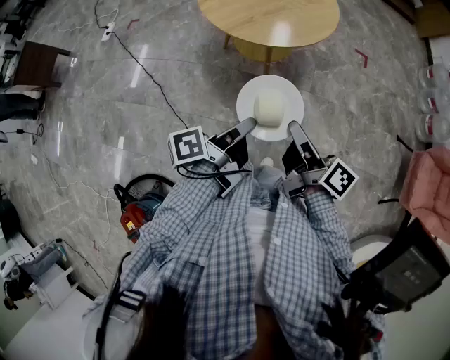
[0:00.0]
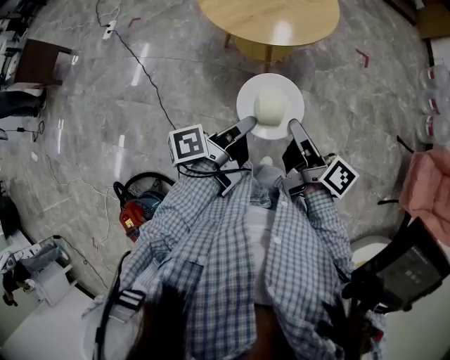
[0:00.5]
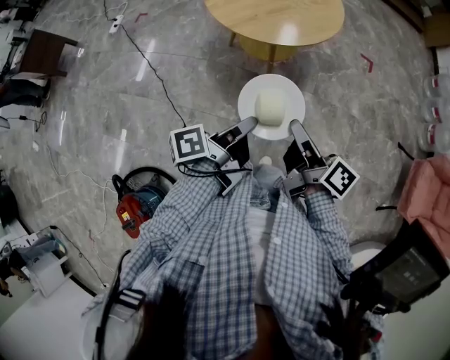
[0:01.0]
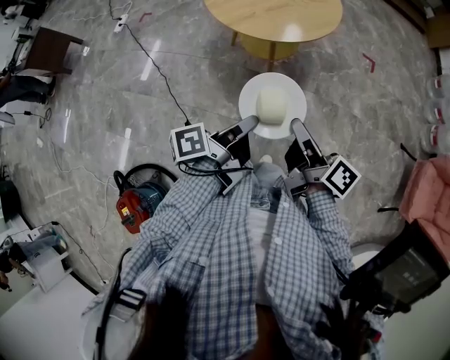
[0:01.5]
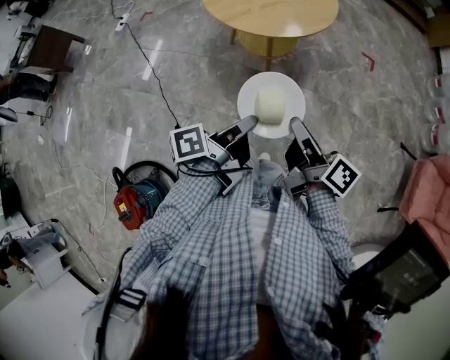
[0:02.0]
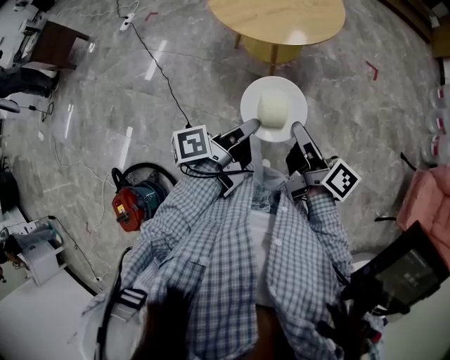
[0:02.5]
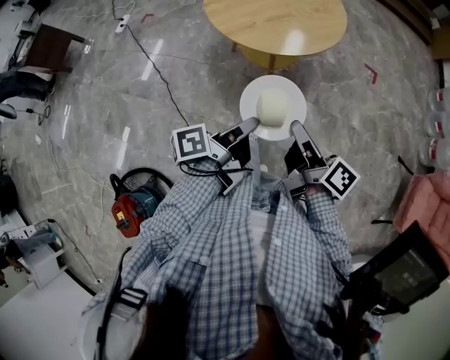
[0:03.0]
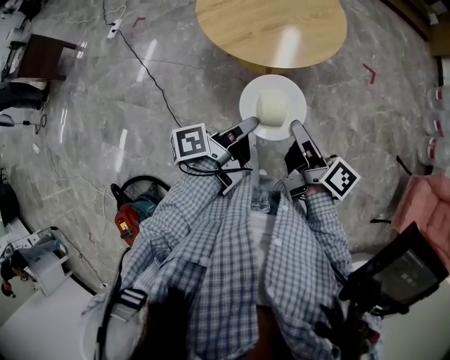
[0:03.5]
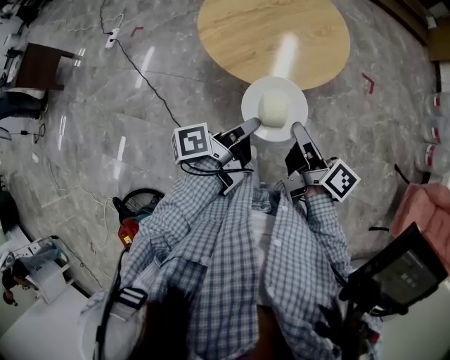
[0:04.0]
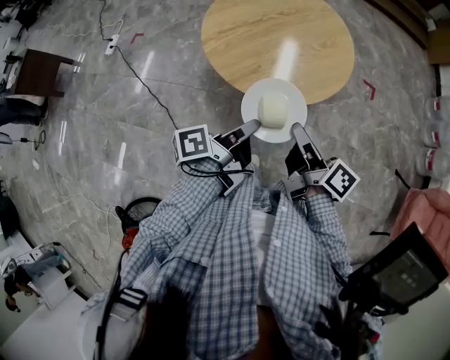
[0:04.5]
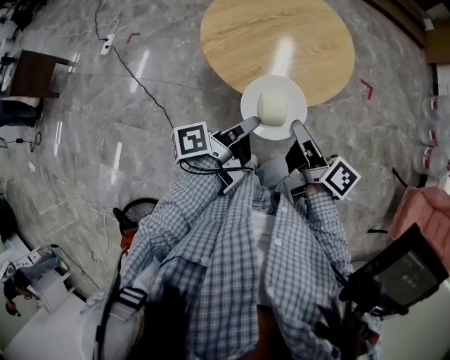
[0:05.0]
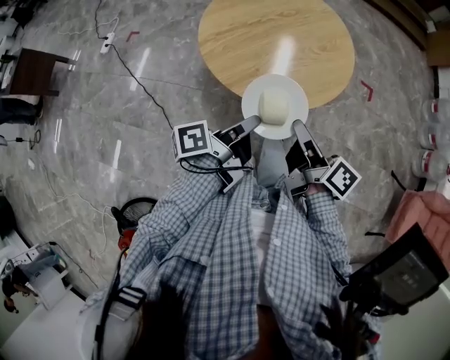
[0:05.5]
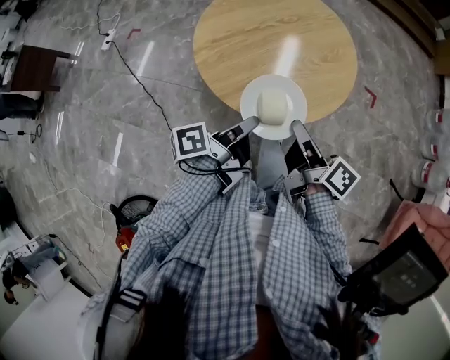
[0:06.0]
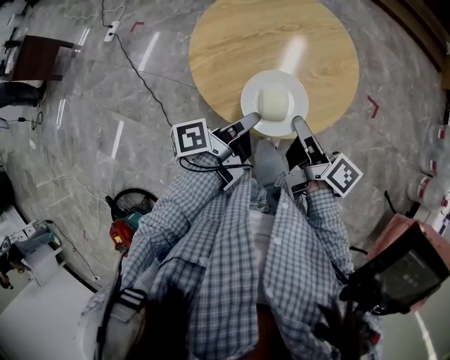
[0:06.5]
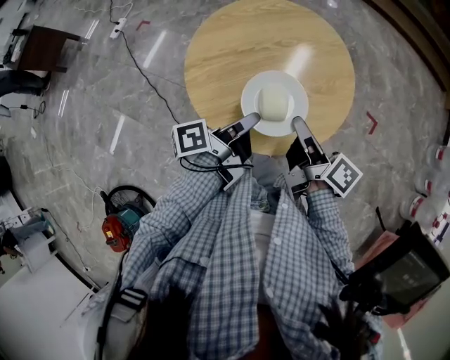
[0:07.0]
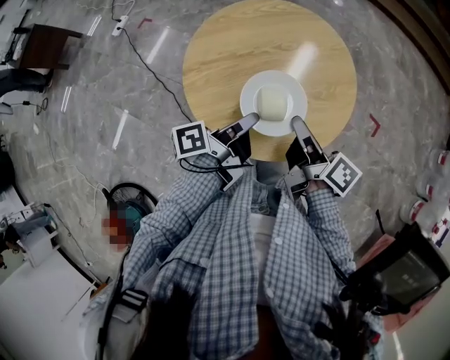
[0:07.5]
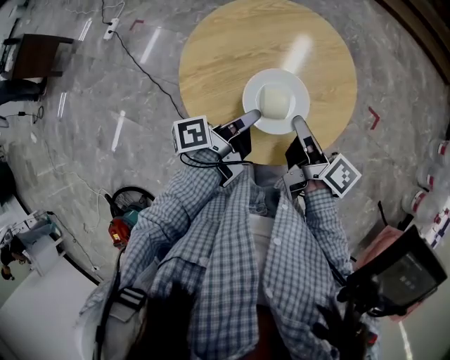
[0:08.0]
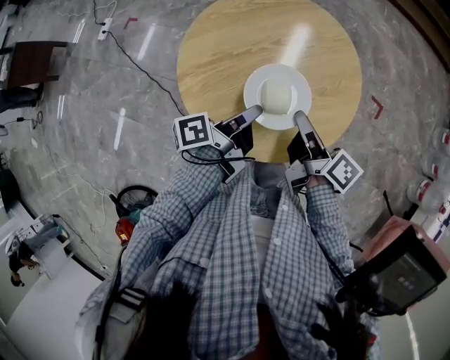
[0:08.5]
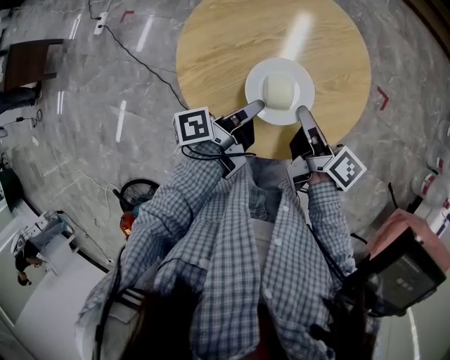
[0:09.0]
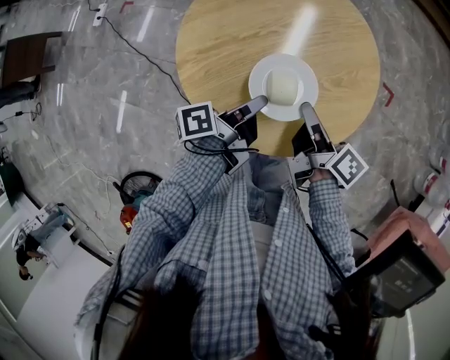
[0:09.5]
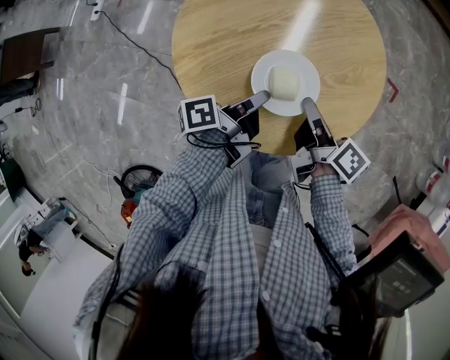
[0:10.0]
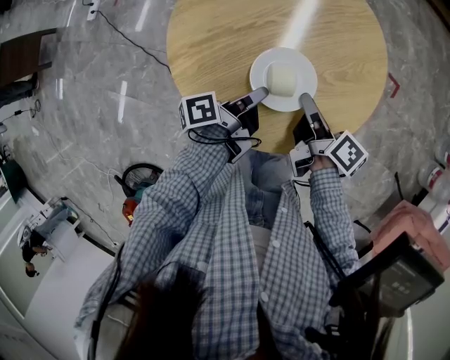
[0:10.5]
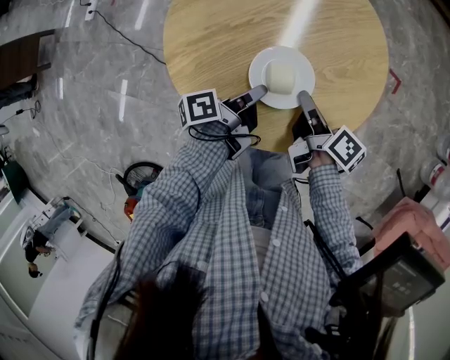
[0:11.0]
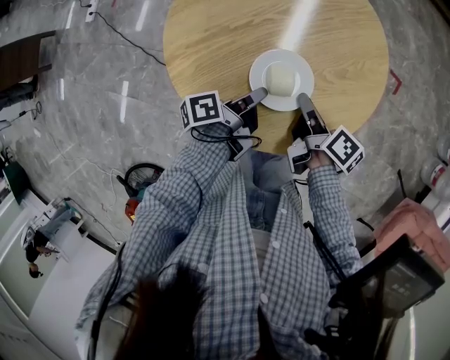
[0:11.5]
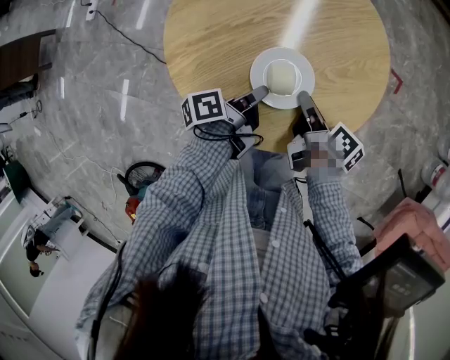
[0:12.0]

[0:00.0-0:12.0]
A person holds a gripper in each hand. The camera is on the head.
0:02.0 to 0:04.0: The right gripper changes place by approximately 15 cm.
0:04.0 to 0:06.0: The right gripper ends up roughly 15 cm from where it was.
0:06.0 to 0:08.0: The right gripper ends up some 20 cm from where it was.
0:08.0 to 0:10.0: The right gripper travels downward by about 10 cm.
0:10.0 to 0:12.0: The right gripper shifts some 5 cm downward.

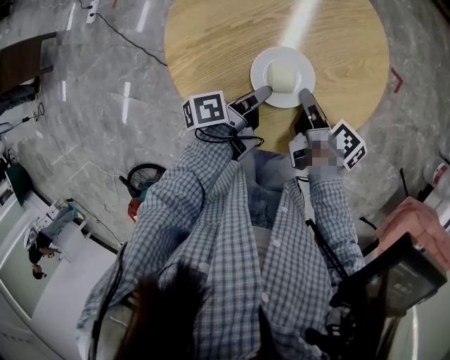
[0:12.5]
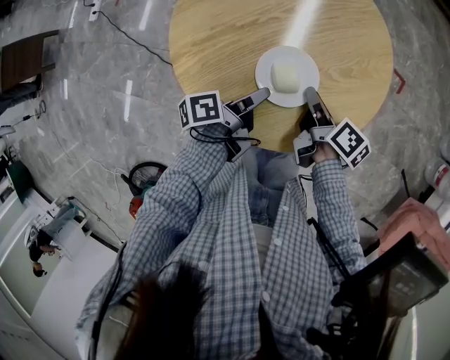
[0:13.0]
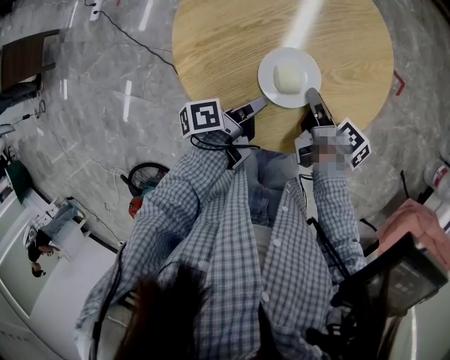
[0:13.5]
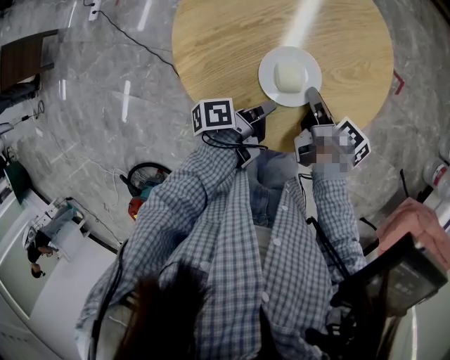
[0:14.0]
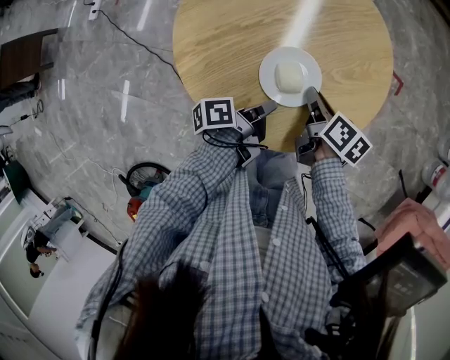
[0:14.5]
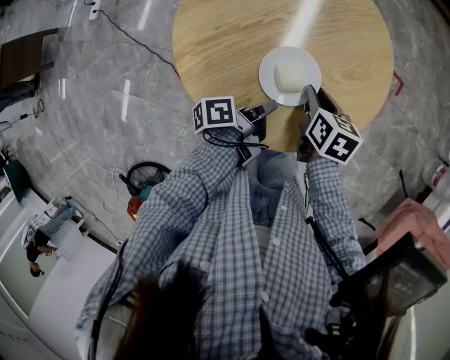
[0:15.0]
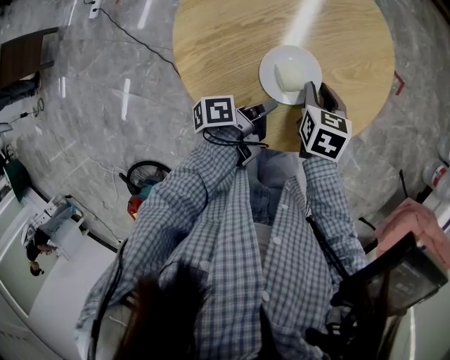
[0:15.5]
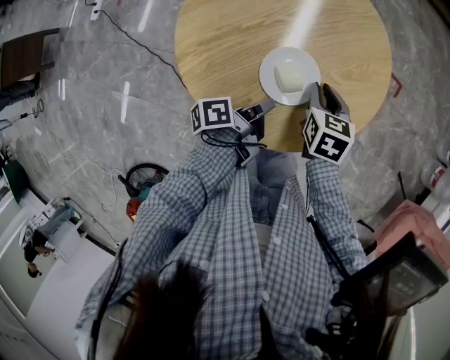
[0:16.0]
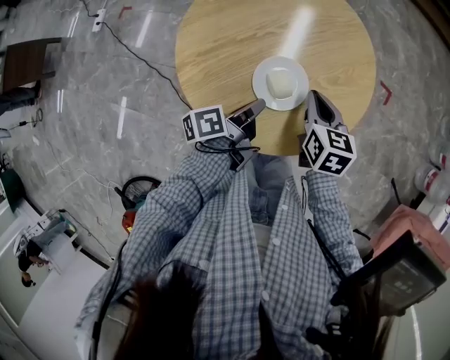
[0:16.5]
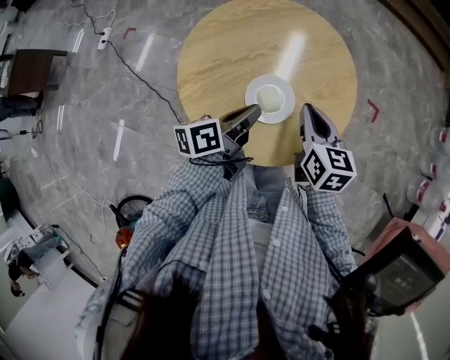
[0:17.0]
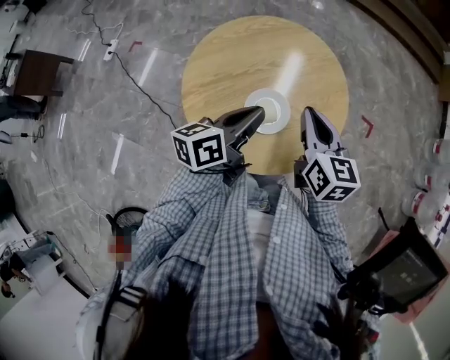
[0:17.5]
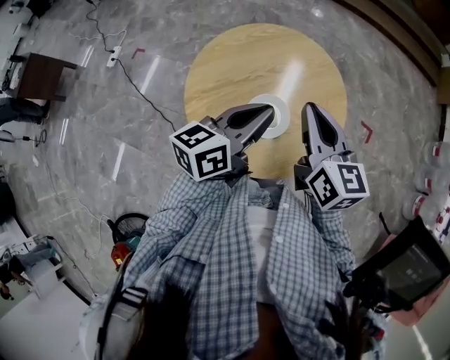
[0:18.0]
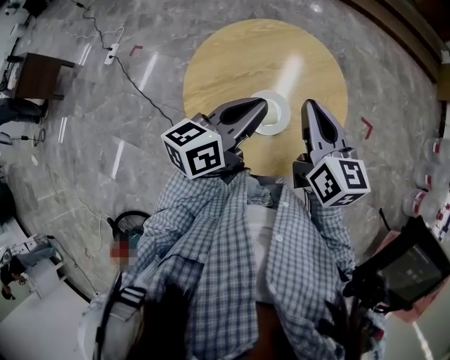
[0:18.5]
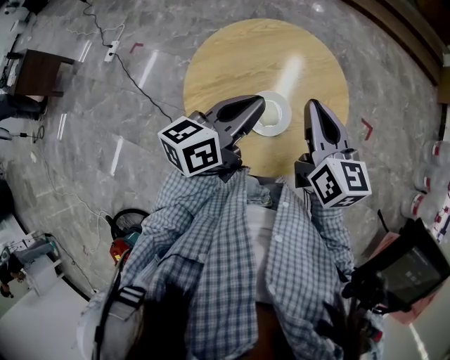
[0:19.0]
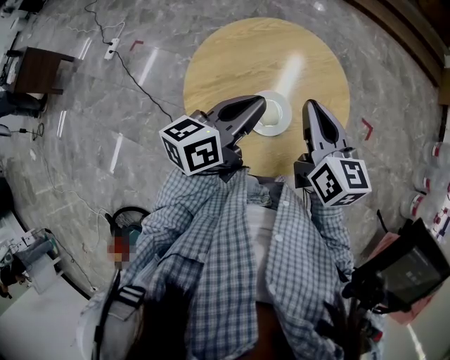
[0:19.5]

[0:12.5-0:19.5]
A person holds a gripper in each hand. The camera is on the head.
0:14.5 to 0:16.0: The right gripper swivels about 40 degrees.
0:16.0 to 0:17.5: The right gripper goes roughly 20 cm upward, and angles its fingers upward, by approximately 30 degrees.
0:17.5 to 0:19.5: The right gripper shifts by some 5 cm.

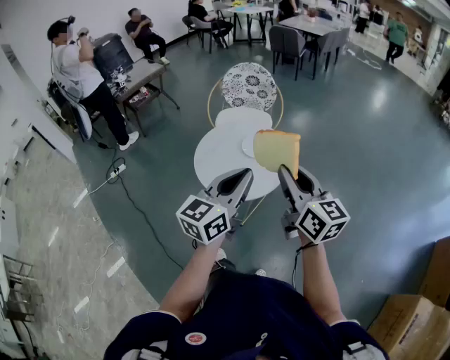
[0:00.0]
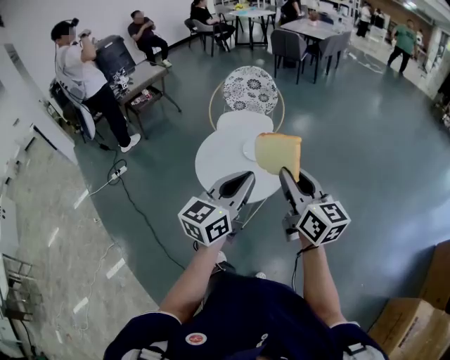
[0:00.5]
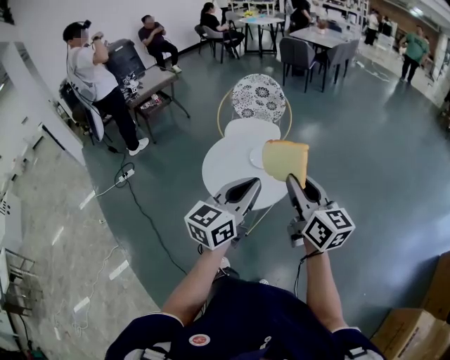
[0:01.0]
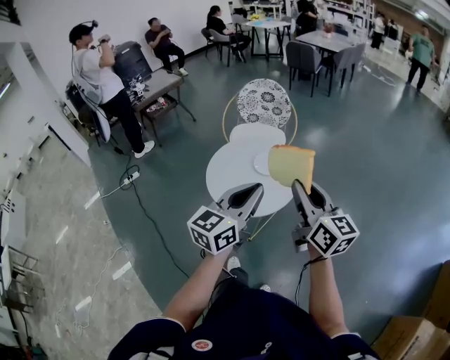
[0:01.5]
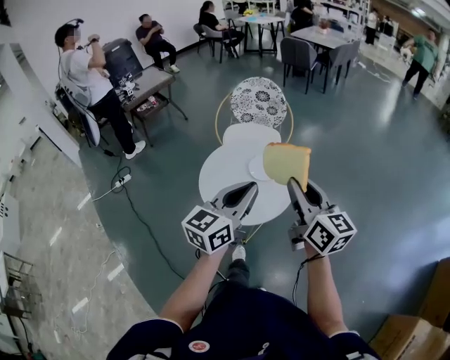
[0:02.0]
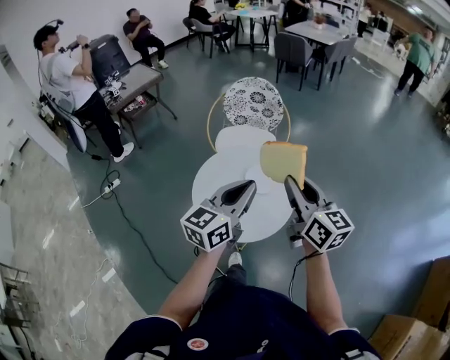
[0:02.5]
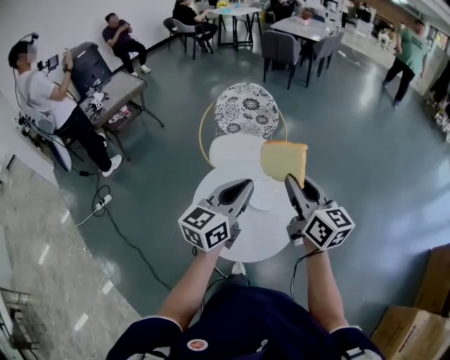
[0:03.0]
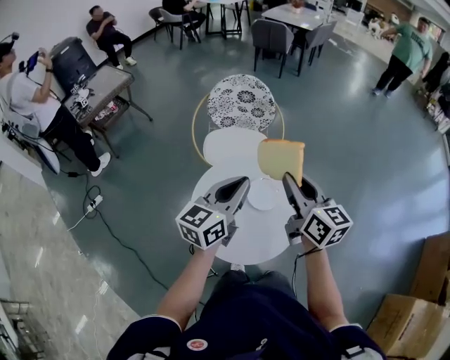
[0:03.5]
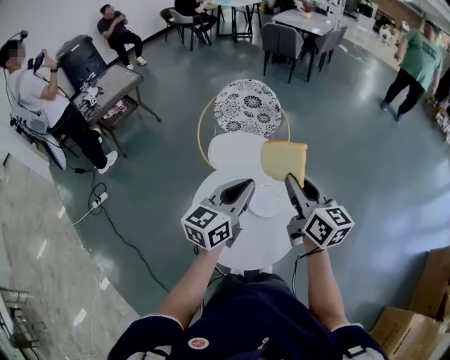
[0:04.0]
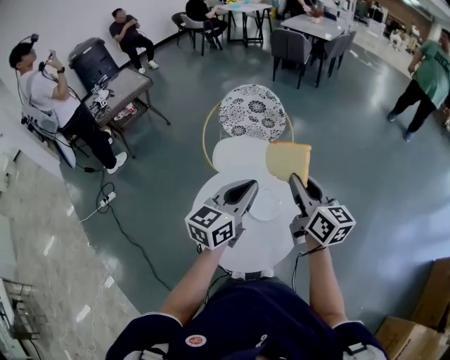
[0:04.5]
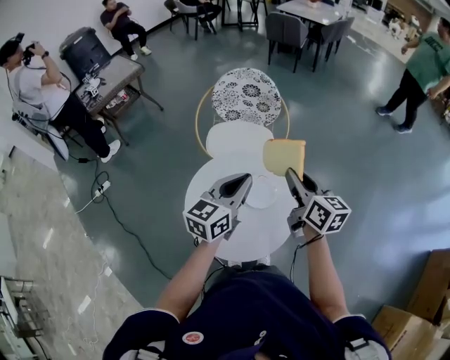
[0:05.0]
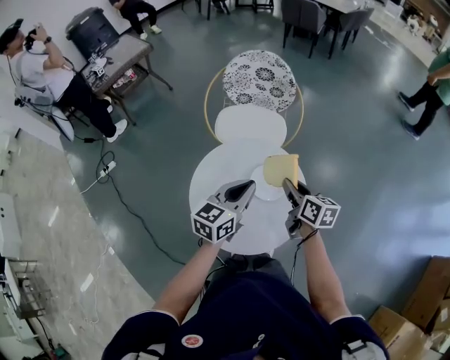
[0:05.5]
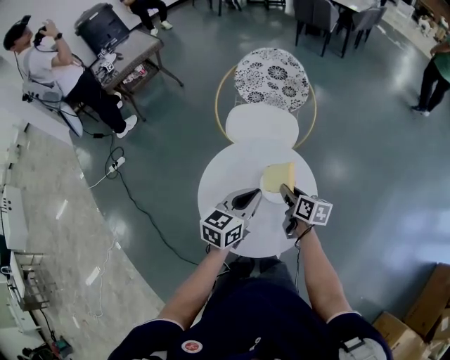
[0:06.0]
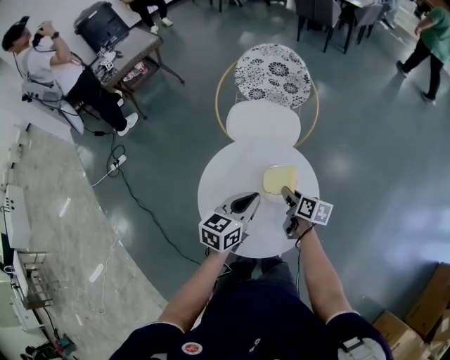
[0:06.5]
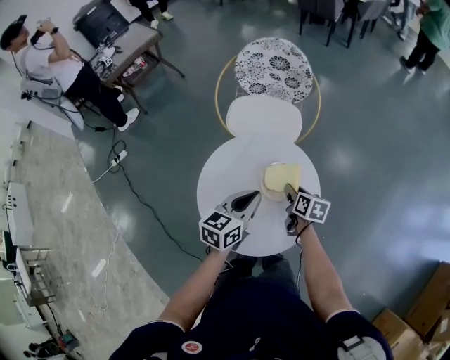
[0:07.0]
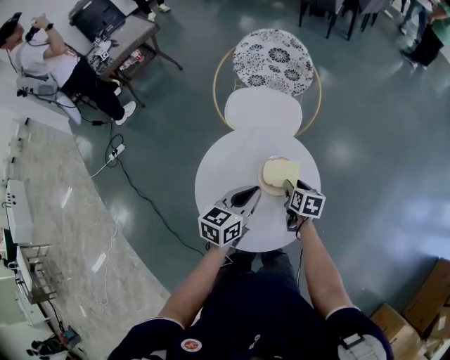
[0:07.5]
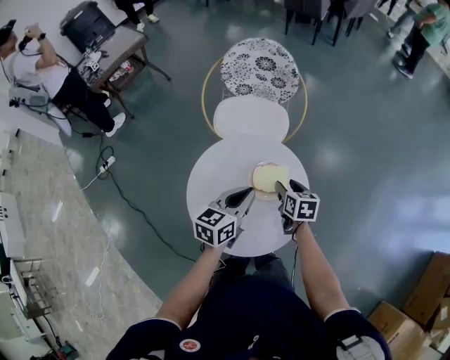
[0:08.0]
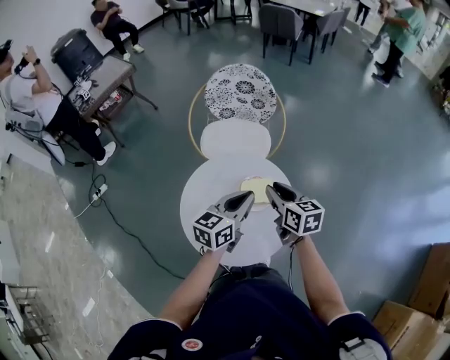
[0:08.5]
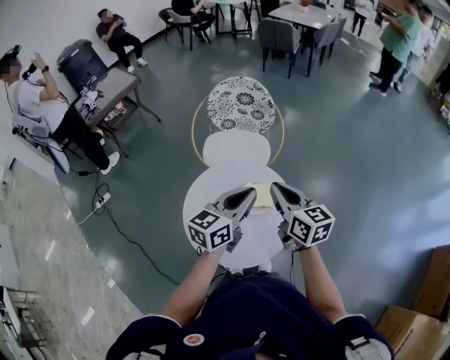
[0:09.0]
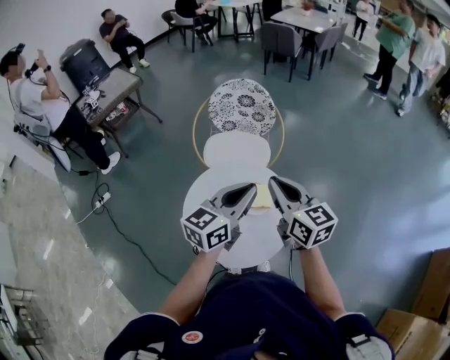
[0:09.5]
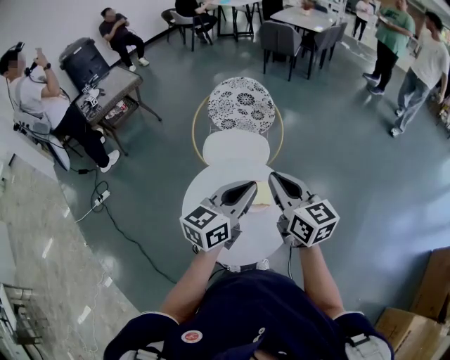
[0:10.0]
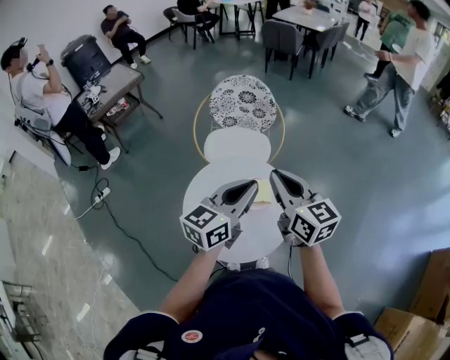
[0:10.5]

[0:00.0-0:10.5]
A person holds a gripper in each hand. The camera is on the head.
0:00.0 to 0:02.0: The two grippers go roughly 5 cm forward.
0:02.0 to 0:04.0: The two grippers go about 25 cm forward.
0:04.0 to 0:06.5: The left gripper travels downward by some 15 cm, and rotates approximately 20 degrees. Meanwhile the right gripper is displaced downward by roughly 30 cm, and swivels roughly 40 degrees.
0:06.5 to 0:08.5: The left gripper shifts about 5 cm upward. Meanwhile the right gripper moves upward, approximately 15 cm, changes its angle by roughly 30 degrees, and opens, then closes again.
0:08.5 to 0:10.5: Both grippers move upward, roughly 15 cm. The right gripper swivels approximately 20 degrees, and closes its fingers.
